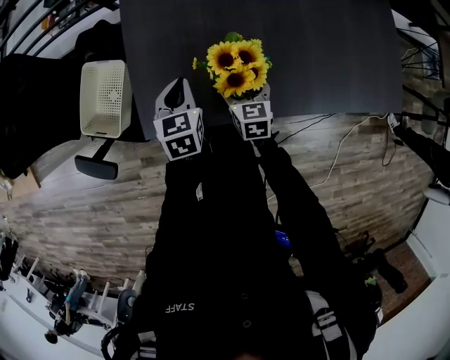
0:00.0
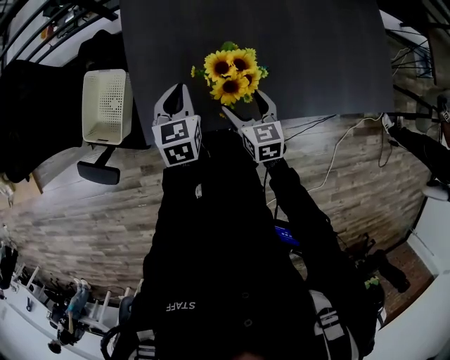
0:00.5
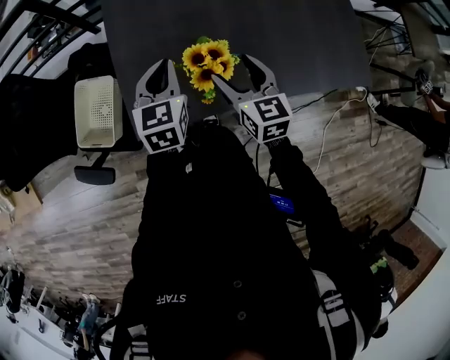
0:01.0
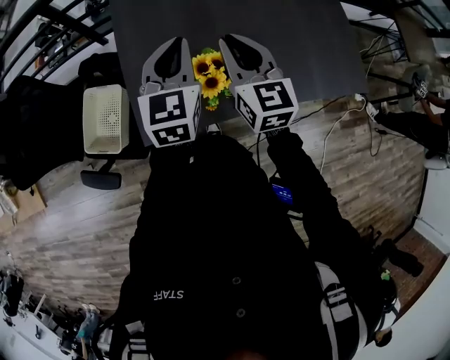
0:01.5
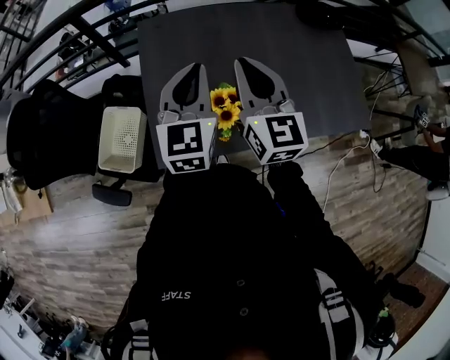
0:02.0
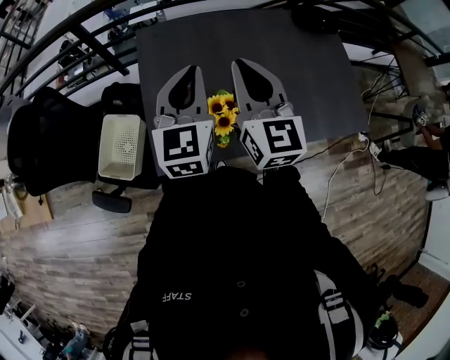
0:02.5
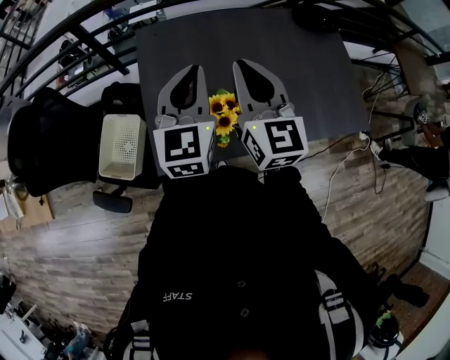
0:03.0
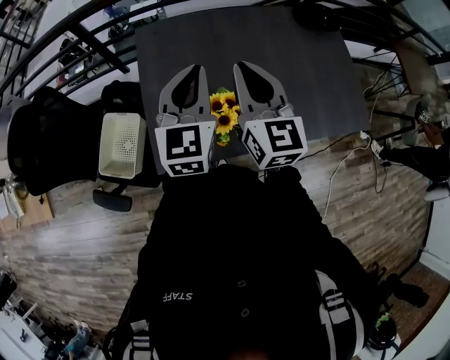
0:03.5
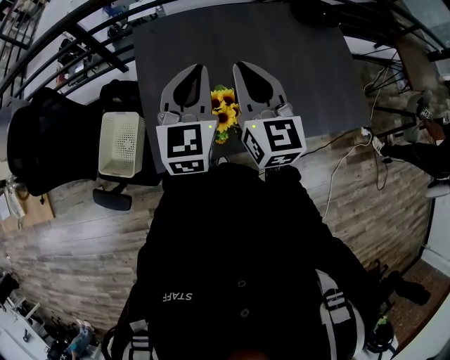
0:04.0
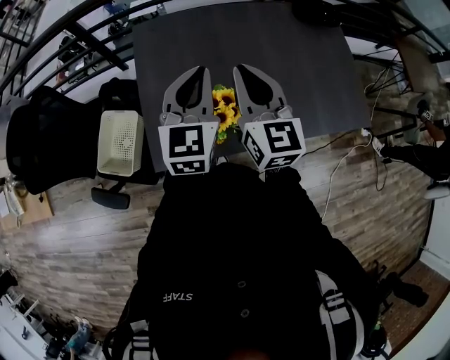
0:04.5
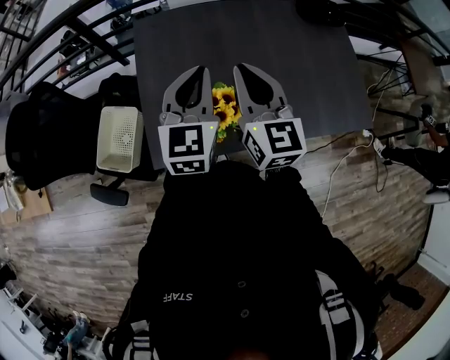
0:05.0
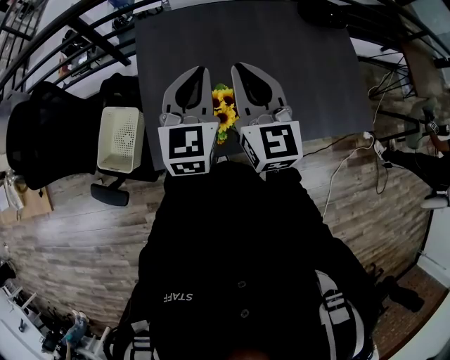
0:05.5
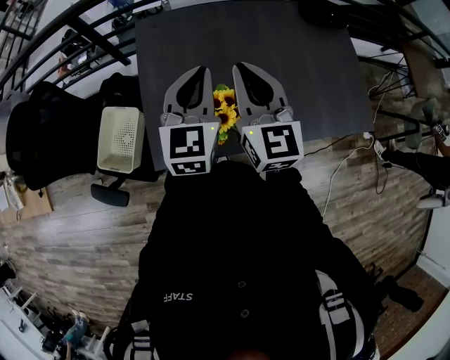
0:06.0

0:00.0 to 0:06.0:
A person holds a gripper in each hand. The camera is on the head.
0:00.0 to 0:02.0: Both grippers travel together upward, some 35 cm. The right gripper points its fingers about 40 degrees further upward, and closes up. The left gripper angles its fingers upward, by approximately 30 degrees.
0:02.0 to 0:06.0: There are only small adjustments of the grippers.

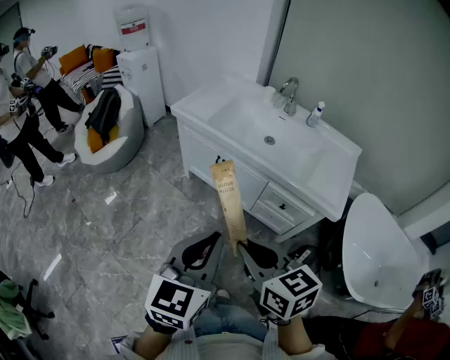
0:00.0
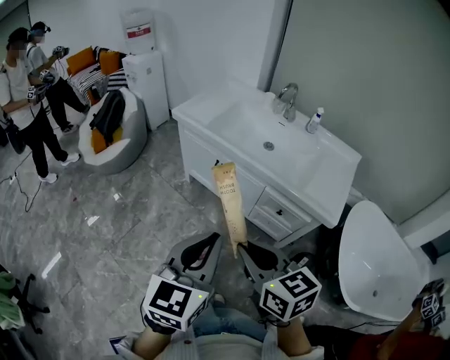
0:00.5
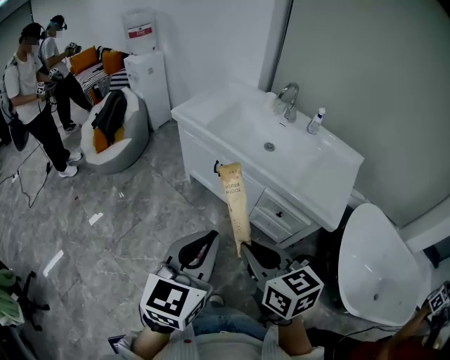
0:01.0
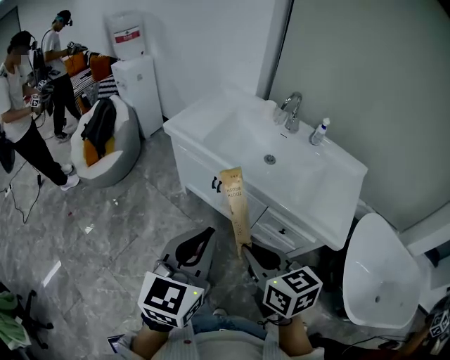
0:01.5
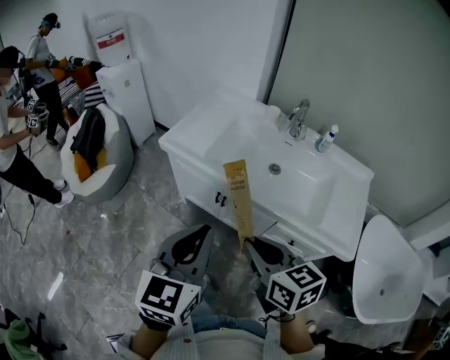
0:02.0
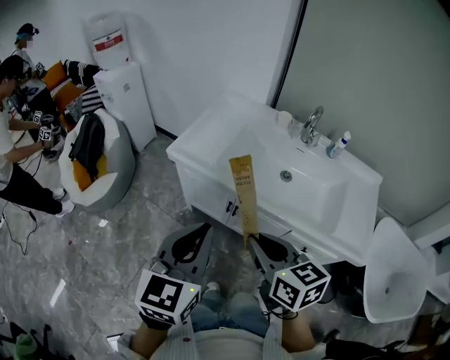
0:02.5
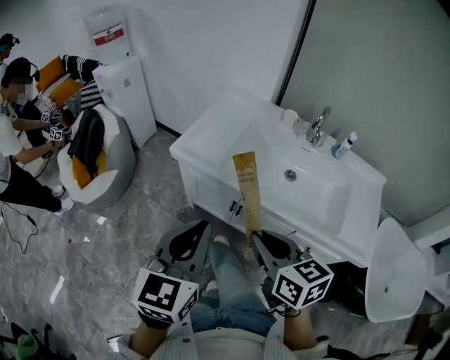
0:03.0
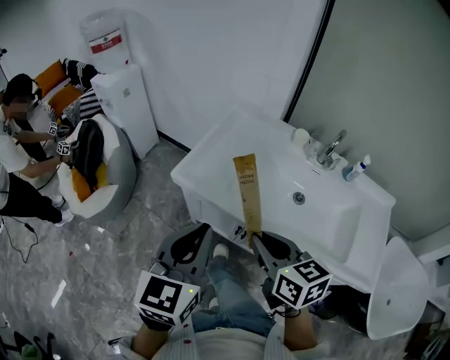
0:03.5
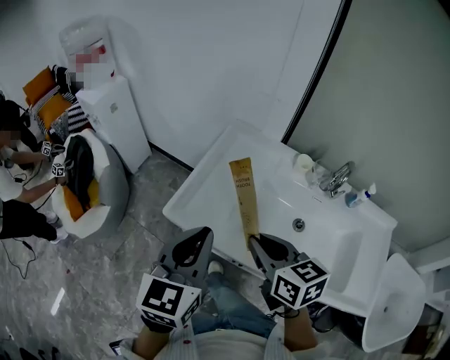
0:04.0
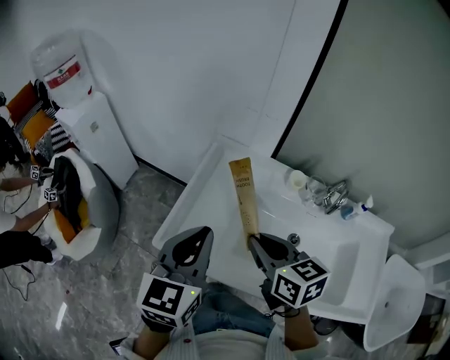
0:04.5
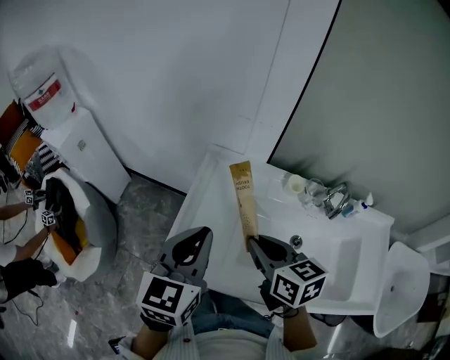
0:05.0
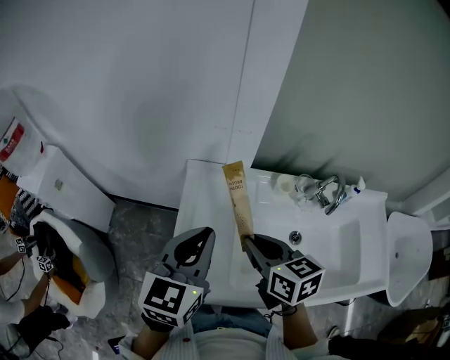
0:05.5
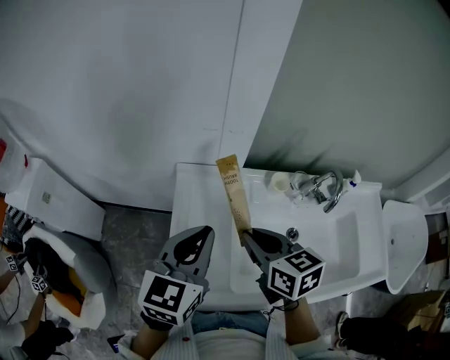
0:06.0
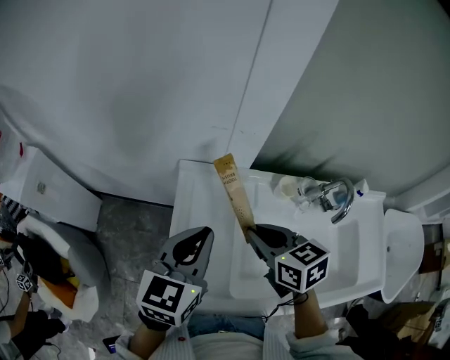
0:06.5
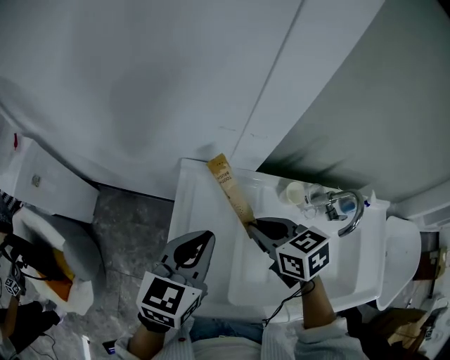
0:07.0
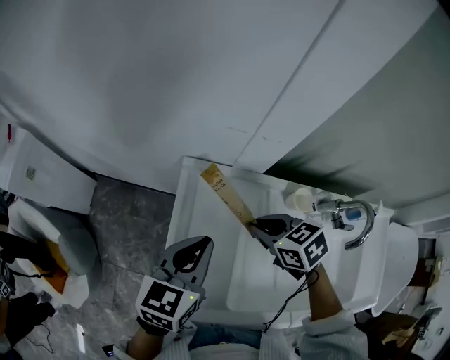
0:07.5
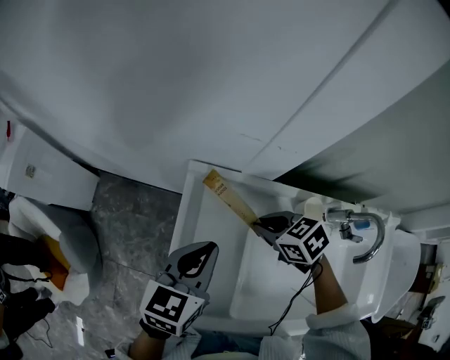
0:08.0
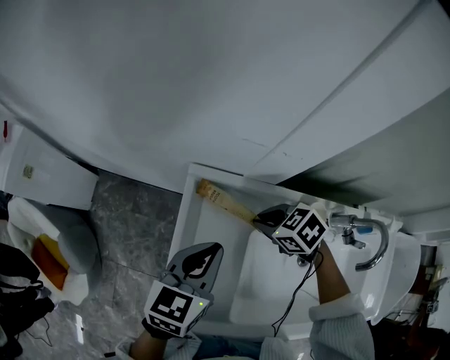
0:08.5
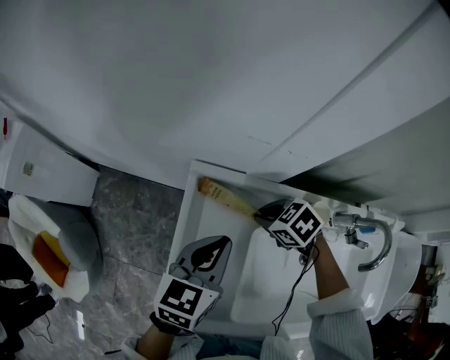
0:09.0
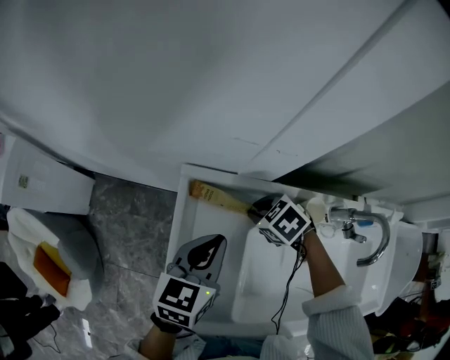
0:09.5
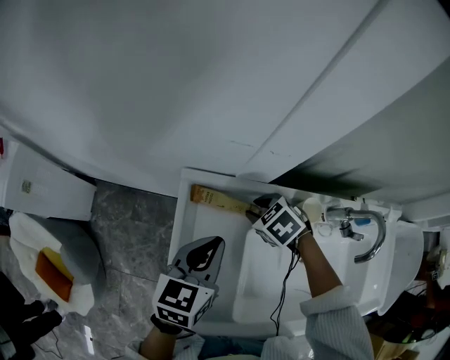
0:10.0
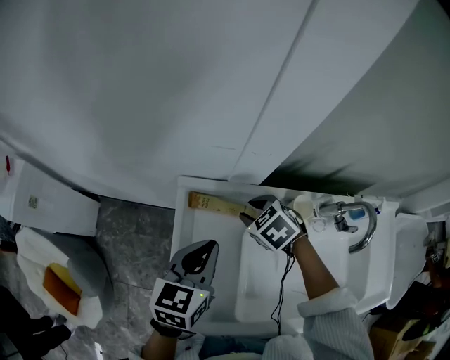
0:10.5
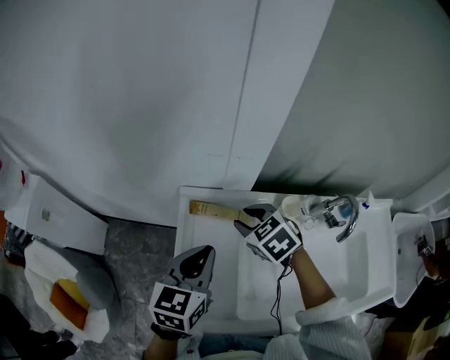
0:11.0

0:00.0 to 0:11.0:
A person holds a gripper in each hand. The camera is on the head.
0:00.0 to 0:02.0: Both grippers move forward, approximately 25 cm.
0:02.0 to 0:03.5: The right gripper shifts approximately 20 cm forward. The left gripper shifts some 20 cm forward and to the left.
0:03.5 to 0:05.5: Both grippers travel together forward, some 30 cm. The left gripper changes its angle by about 30 degrees. The right gripper changes its angle by approximately 20 degrees.
0:05.5 to 0:07.5: The right gripper moves forward and downward, approximately 15 cm, and changes its angle by about 30 degrees. Meanwhile the left gripper moves downward and forward, some 15 cm.
0:07.5 to 0:09.0: The left gripper moves about 5 cm; the right gripper heads downward and forward, covering some 10 cm, and rotates about 20 degrees.
0:09.0 to 0:11.0: The left gripper goes some 5 cm upward, while the right gripper moves upward, approximately 10 cm, swivels roughly 30 degrees, and opens up.

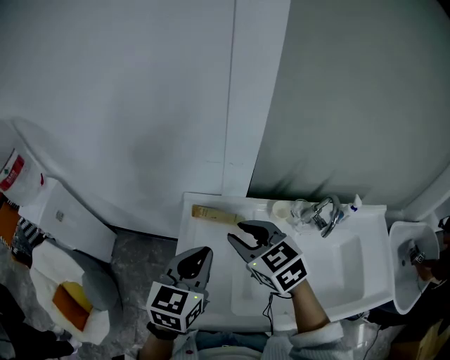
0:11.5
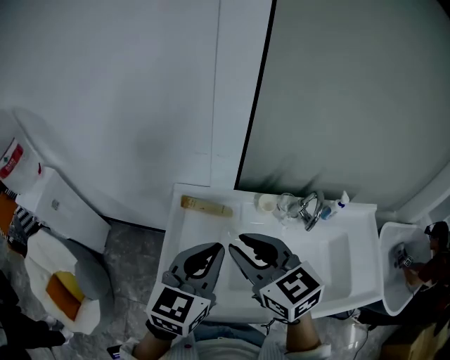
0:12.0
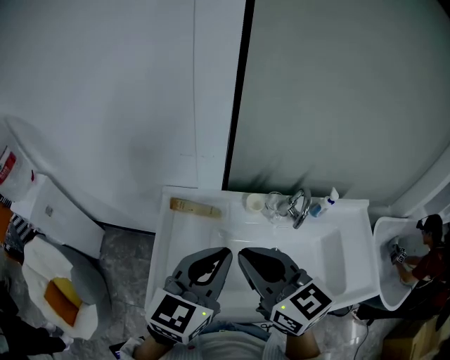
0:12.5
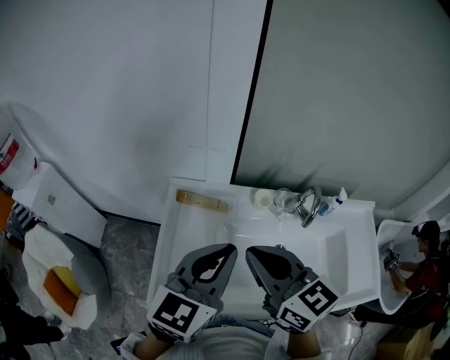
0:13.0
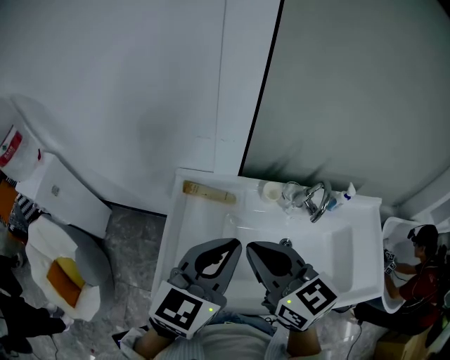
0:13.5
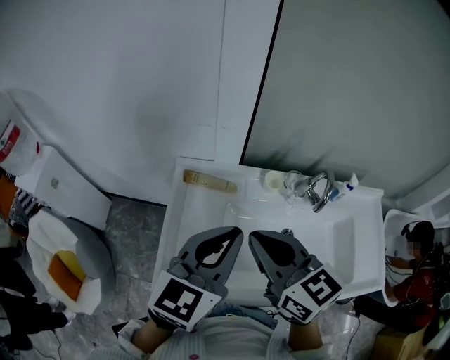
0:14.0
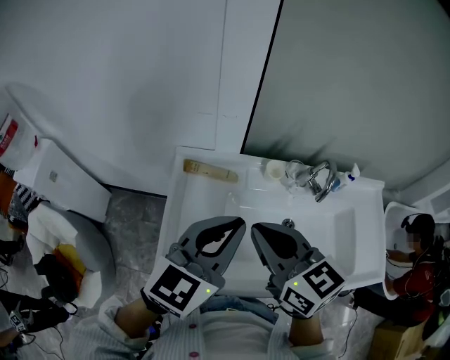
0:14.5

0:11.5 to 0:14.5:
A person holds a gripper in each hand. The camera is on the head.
0:11.5 to 0:13.0: The right gripper is displaced backward, upward and to the right by approximately 15 cm, swivels approximately 20 degrees, and closes its fingers; the left gripper goes about 15 cm to the right, upward and backward.
0:13.0 to 0:14.5: The grippers move only a little.

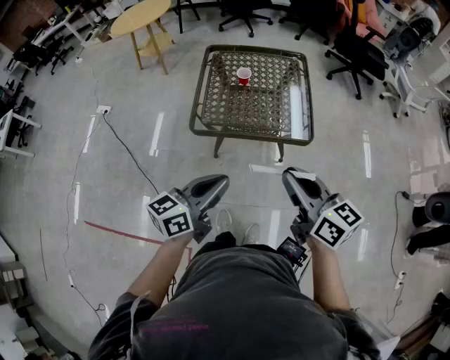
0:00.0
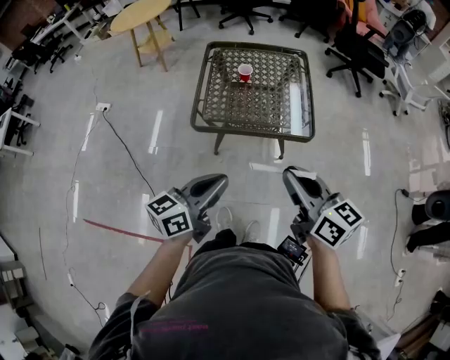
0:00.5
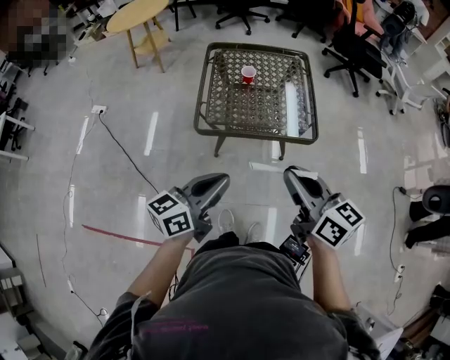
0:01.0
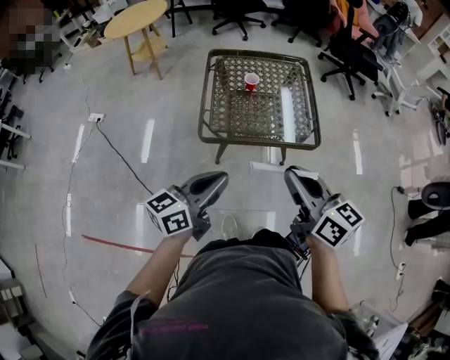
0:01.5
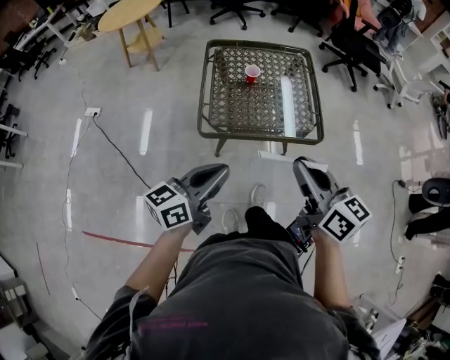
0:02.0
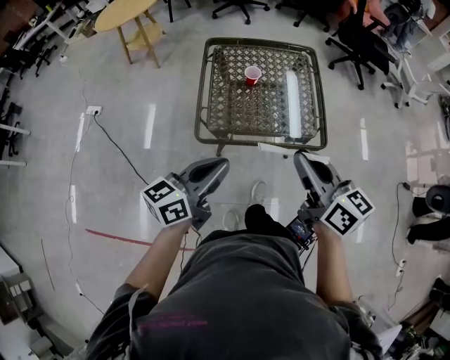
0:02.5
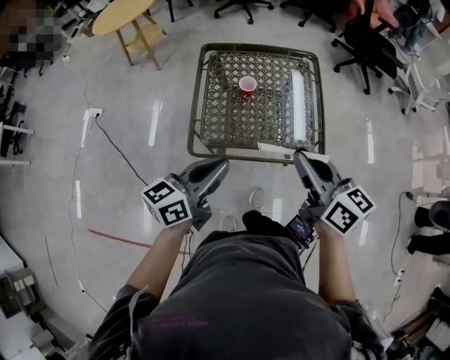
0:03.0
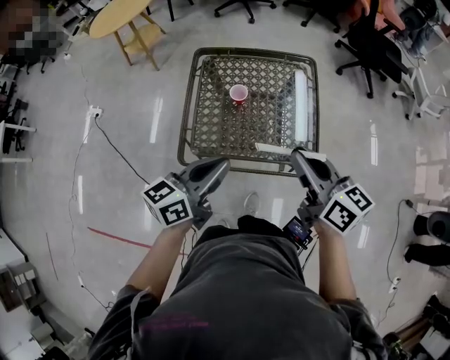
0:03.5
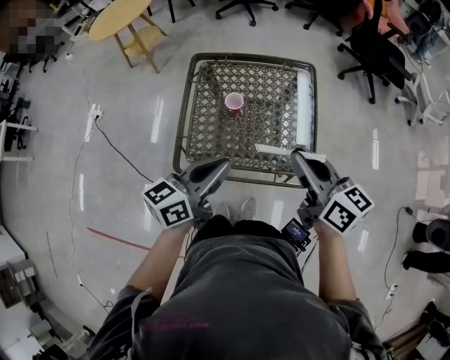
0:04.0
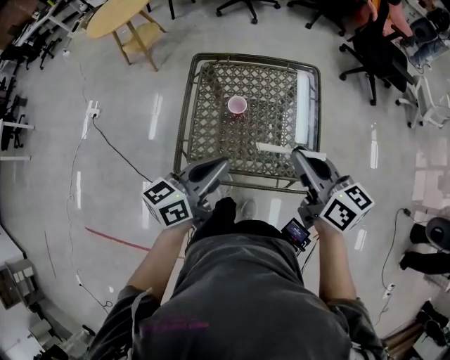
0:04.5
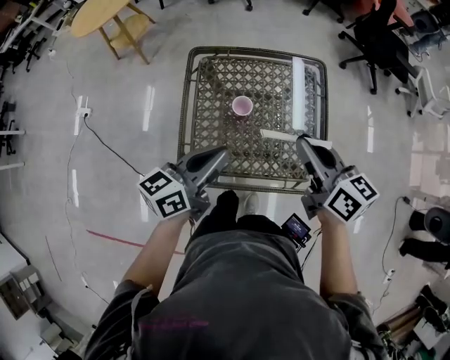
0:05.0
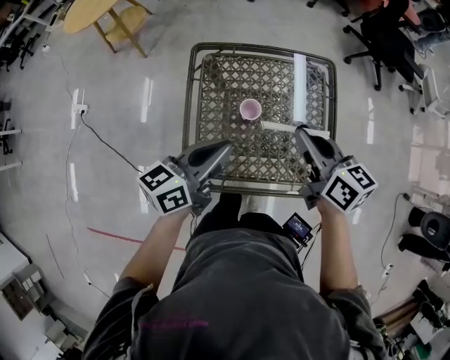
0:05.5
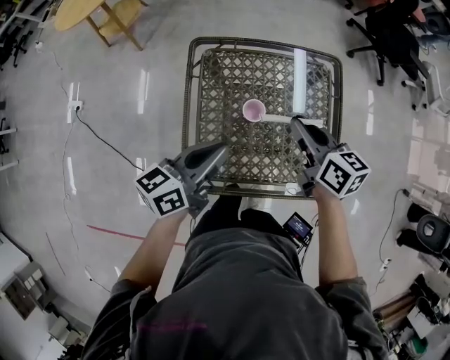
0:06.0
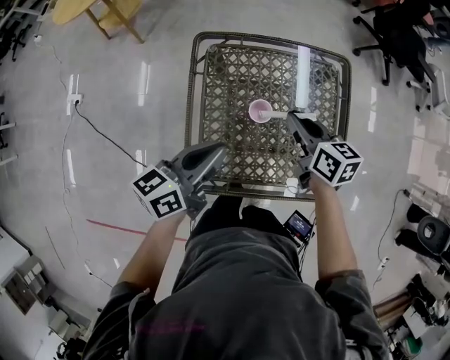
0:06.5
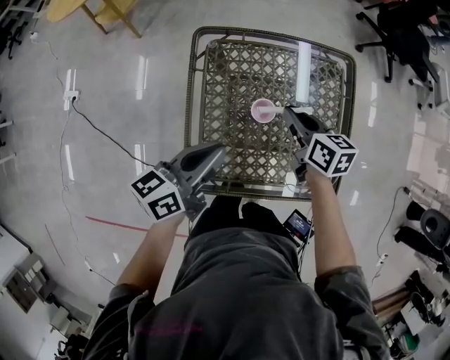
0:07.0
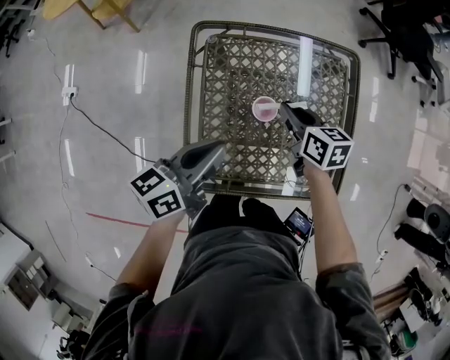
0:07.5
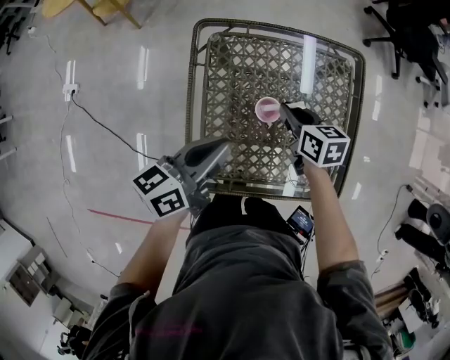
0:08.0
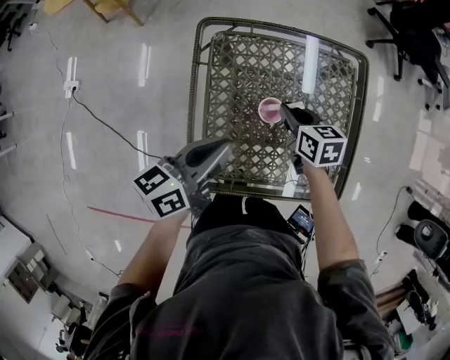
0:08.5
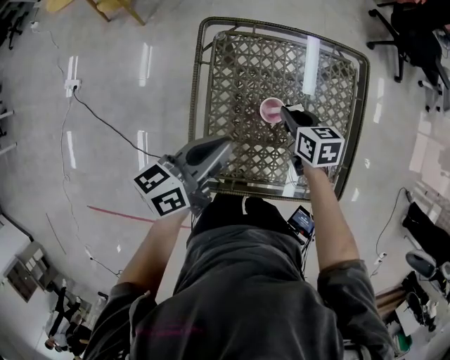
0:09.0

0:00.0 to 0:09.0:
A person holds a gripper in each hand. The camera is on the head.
0:00.0 to 0:02.0: The right gripper is displaced to the left by some 10 cm. The left gripper goes approximately 10 cm to the left and forward.
0:02.0 to 0:04.5: Both grippers travel together forward, roughly 30 cm.
0:04.5 to 0:07.0: The right gripper goes some 35 cm forward, downward and to the left, and swivels about 20 degrees; the left gripper heads forward, to the left and downward, covering some 20 cm.
0:07.0 to 0:09.0: The right gripper heads downward, covering roughly 10 cm.
